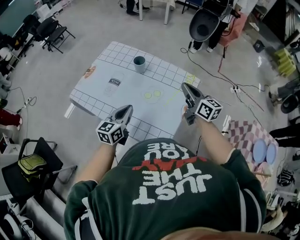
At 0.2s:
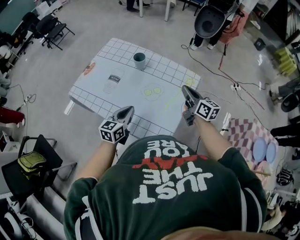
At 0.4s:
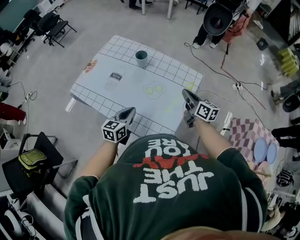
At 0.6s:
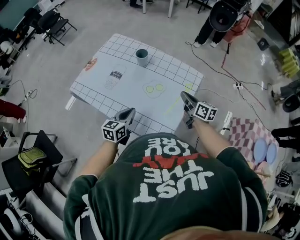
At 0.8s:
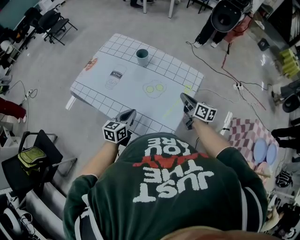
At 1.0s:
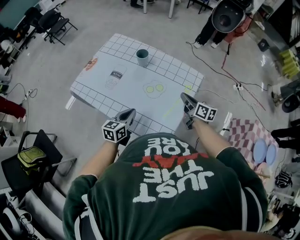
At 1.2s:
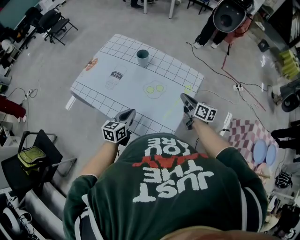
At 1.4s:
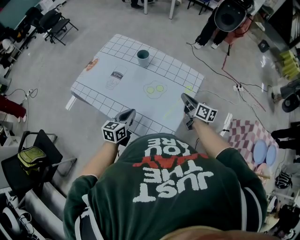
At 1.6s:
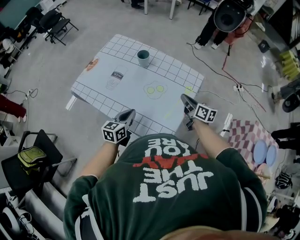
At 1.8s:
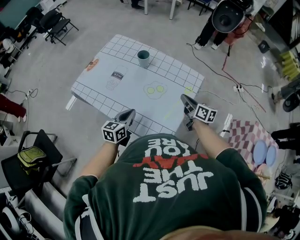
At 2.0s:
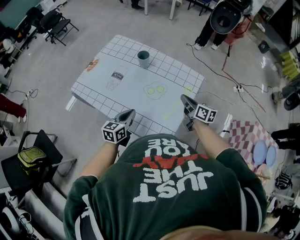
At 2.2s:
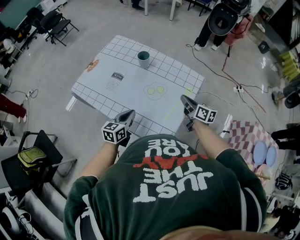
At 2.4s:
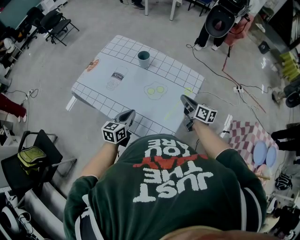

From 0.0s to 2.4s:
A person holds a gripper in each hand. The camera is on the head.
From 0.0s to 1.2s: The right gripper heads downward, covering some 15 cm, and turns by some 20 degrees. Meanwhile the left gripper heads downward, covering about 10 cm.
From 1.2s to 2.4s: The two grippers keep their place.

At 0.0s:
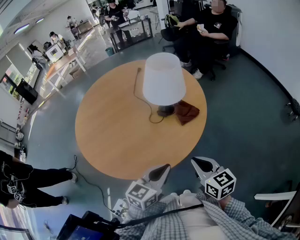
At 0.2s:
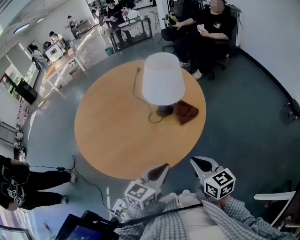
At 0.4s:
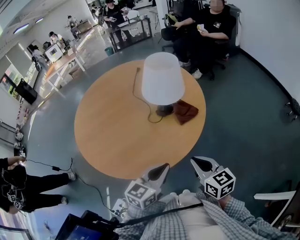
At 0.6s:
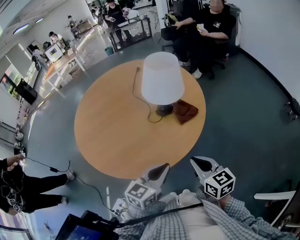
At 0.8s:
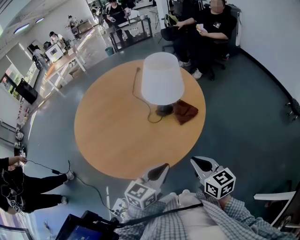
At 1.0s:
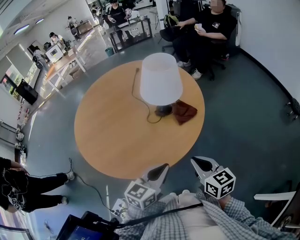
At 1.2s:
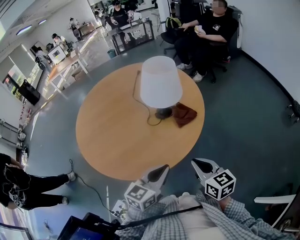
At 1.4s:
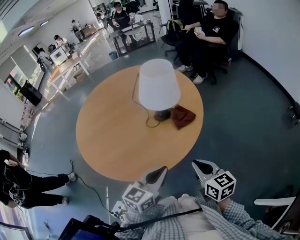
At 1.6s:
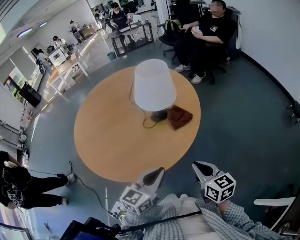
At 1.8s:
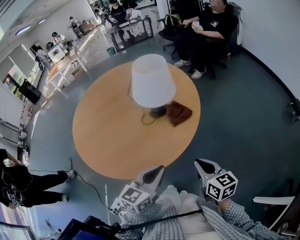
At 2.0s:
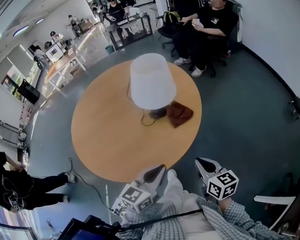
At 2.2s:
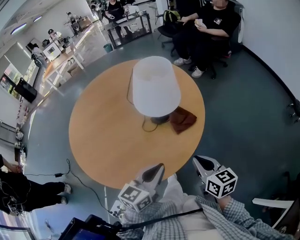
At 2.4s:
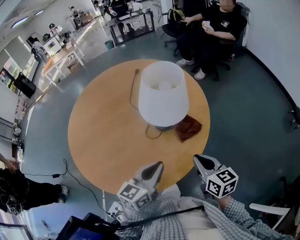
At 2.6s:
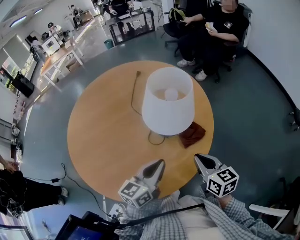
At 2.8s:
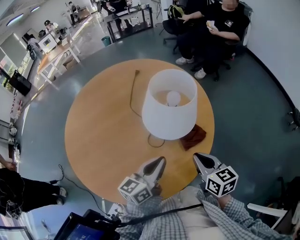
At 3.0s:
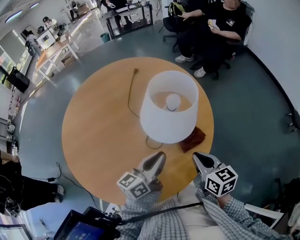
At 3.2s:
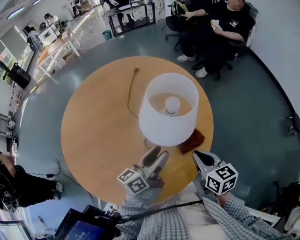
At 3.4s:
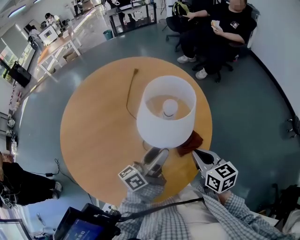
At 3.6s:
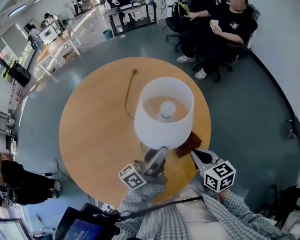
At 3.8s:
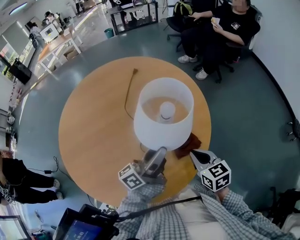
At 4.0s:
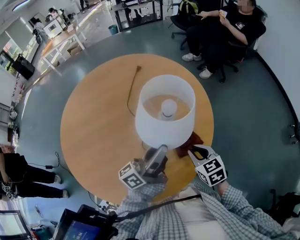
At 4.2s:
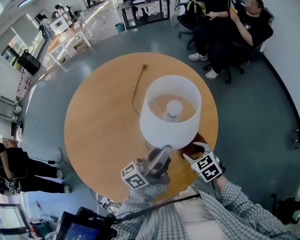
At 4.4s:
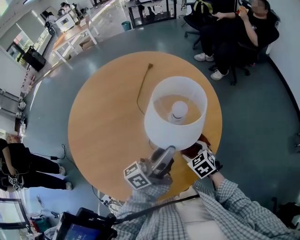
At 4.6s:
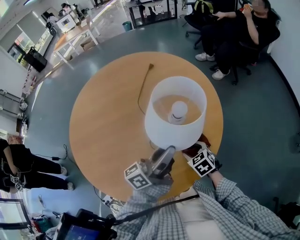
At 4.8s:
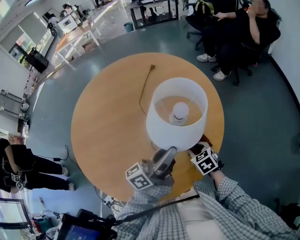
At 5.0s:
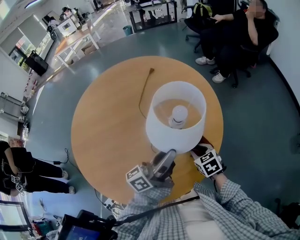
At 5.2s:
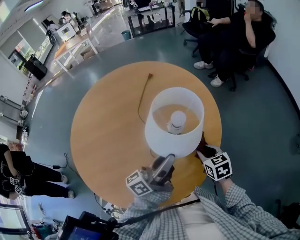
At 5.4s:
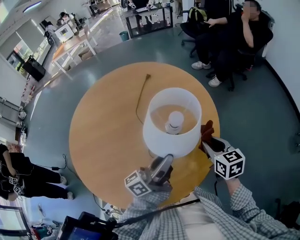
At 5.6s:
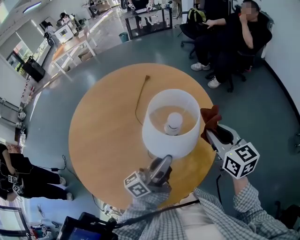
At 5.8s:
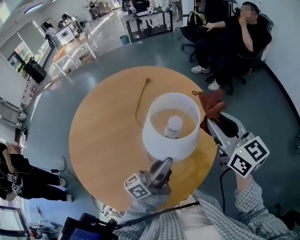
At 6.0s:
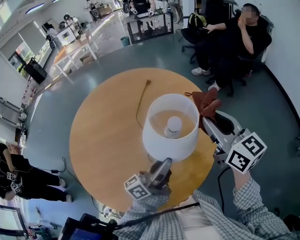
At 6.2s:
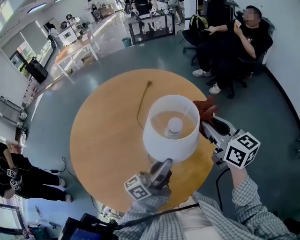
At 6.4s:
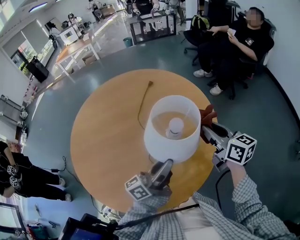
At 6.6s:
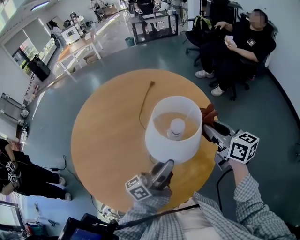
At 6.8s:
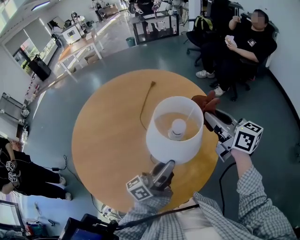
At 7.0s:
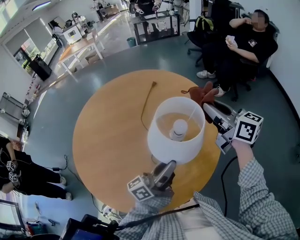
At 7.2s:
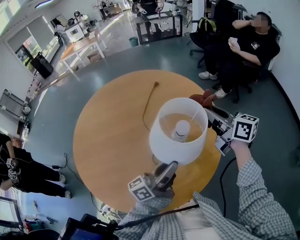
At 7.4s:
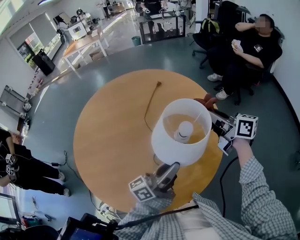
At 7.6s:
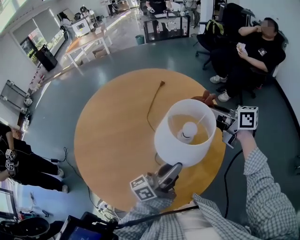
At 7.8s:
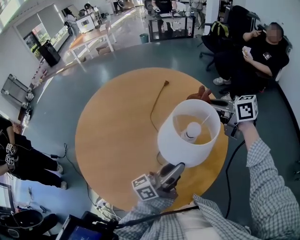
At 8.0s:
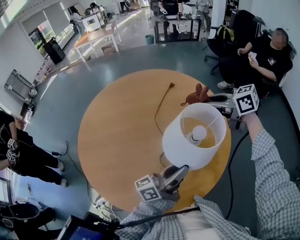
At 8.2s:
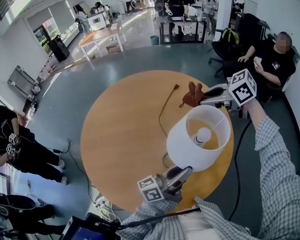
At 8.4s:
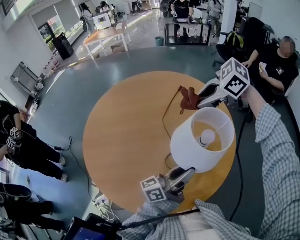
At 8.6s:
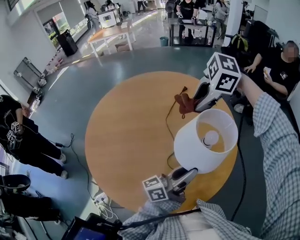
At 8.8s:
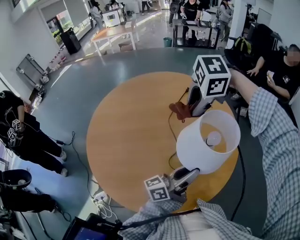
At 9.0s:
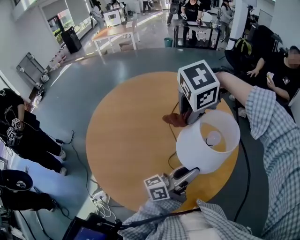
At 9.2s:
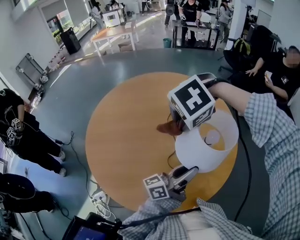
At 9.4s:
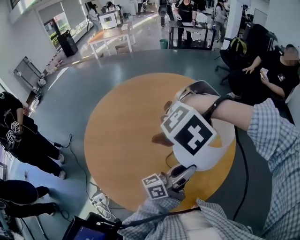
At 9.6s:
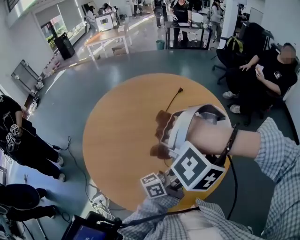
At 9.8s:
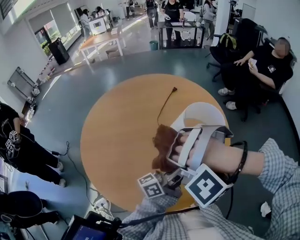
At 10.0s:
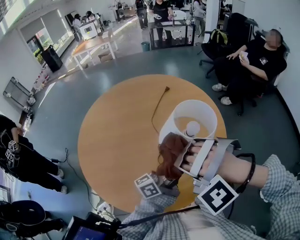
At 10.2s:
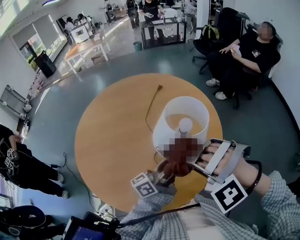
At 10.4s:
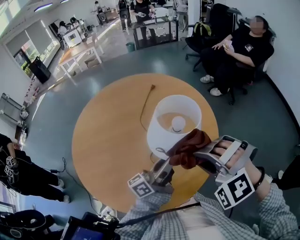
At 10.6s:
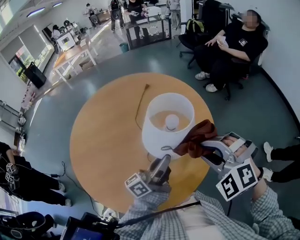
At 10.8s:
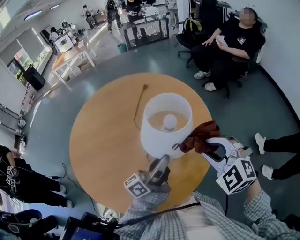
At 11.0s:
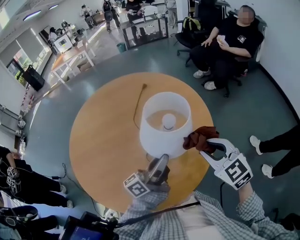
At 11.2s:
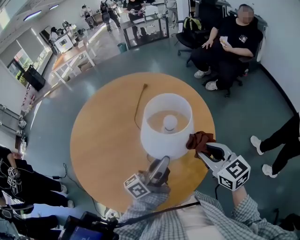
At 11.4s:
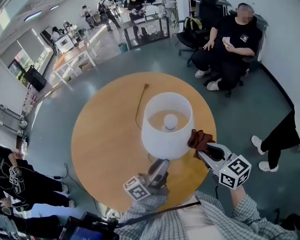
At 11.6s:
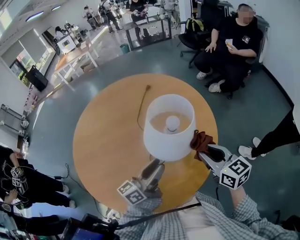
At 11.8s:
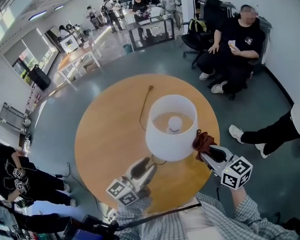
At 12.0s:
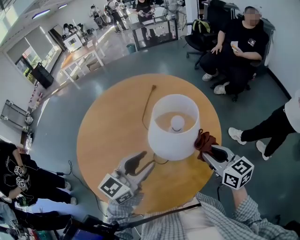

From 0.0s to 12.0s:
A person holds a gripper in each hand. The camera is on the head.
From 0.0s to 1.6s: The right gripper moves approximately 5 cm.
From 1.6s to 3.0s: Both grippers move forward, approximately 20 cm. The left gripper changes its angle by about 30 degrees.
From 3.0s to 4.4s: The right gripper shifts some 15 cm downward and forward, turns by roughly 50 degrees, and opens its fingers; the left gripper is displaced upward by roughly 5 cm, rotates approximately 30 degrees, and opens.
From 4.4s to 6.0s: The right gripper heads upward, covering approximately 30 cm, points its fingers some 50 degrees further upward, and closes its fingers.
From 6.0s to 7.6s: The right gripper is displaced forward and downward by approximately 15 cm, and swivels approximately 40 degrees.
From 7.6s to 9.0s: The right gripper ends up about 20 cm from where it was, and tips its fingers downward by about 70 degrees.
From 9.0s to 10.4s: The right gripper shifts by roughly 20 cm, and points its fingers approximately 30 degrees further upward.
From 10.4s to 12.0s: The right gripper is displaced downward and to the right by approximately 10 cm, and rolls clockwise, seen from behind, by approximately 90 degrees; the left gripper travels upward and to the left by about 5 cm, and rolls clockwise, seen from behind, by some 50 degrees.

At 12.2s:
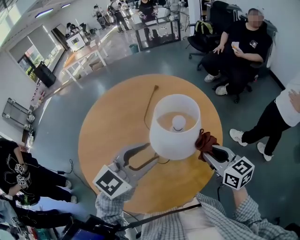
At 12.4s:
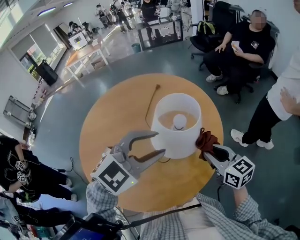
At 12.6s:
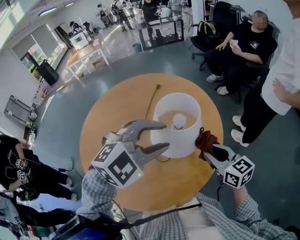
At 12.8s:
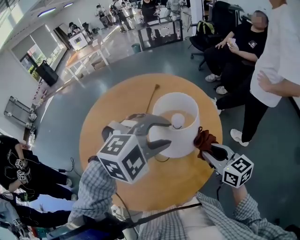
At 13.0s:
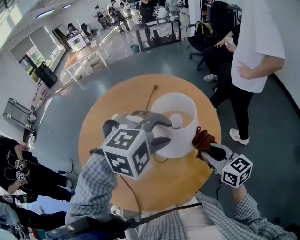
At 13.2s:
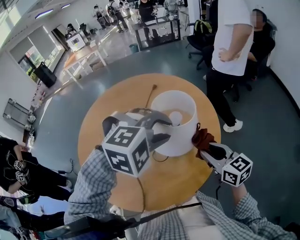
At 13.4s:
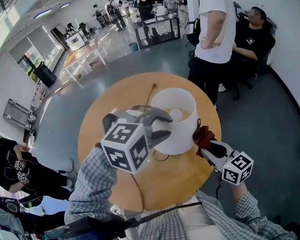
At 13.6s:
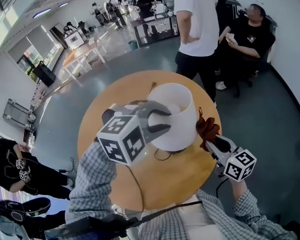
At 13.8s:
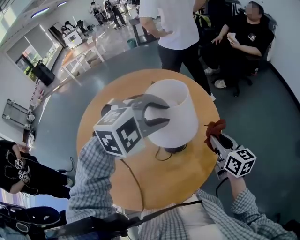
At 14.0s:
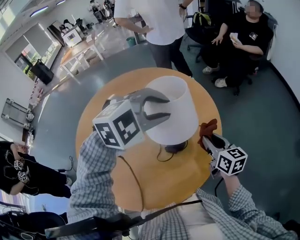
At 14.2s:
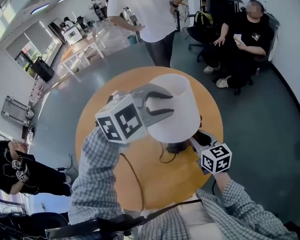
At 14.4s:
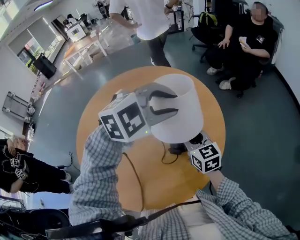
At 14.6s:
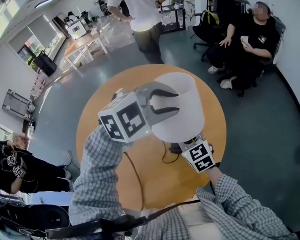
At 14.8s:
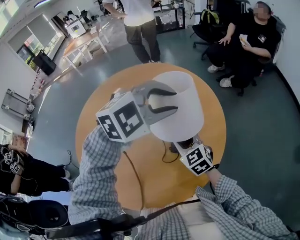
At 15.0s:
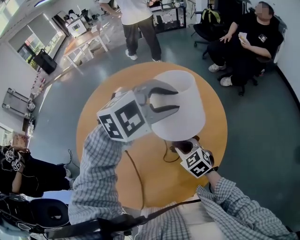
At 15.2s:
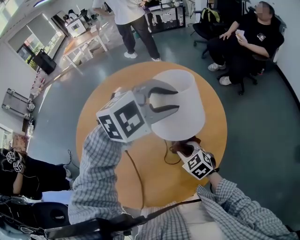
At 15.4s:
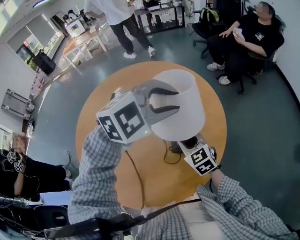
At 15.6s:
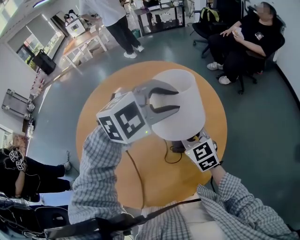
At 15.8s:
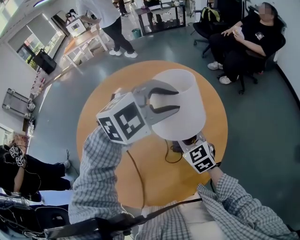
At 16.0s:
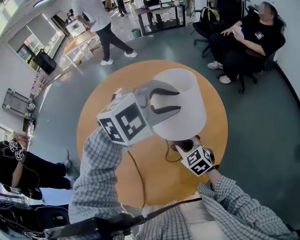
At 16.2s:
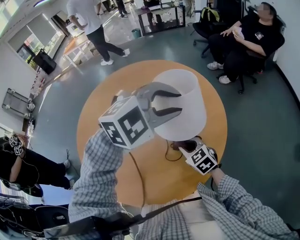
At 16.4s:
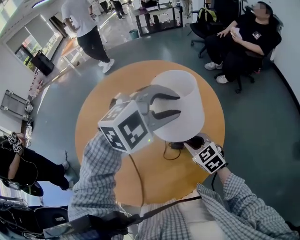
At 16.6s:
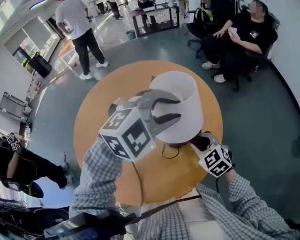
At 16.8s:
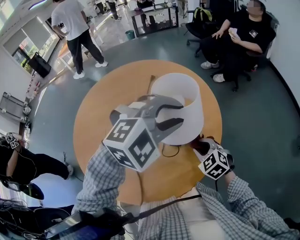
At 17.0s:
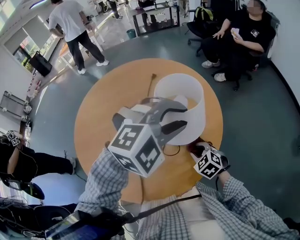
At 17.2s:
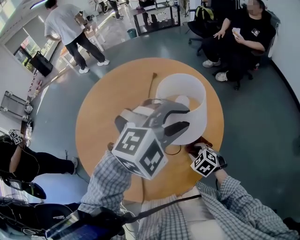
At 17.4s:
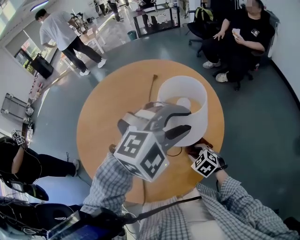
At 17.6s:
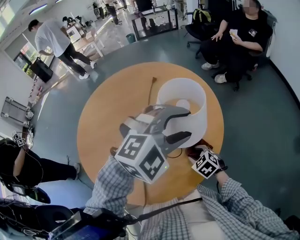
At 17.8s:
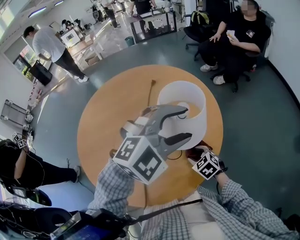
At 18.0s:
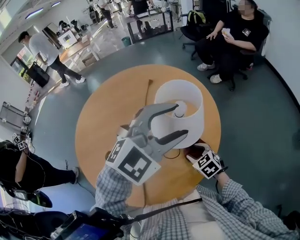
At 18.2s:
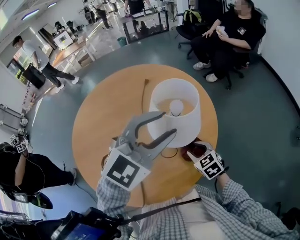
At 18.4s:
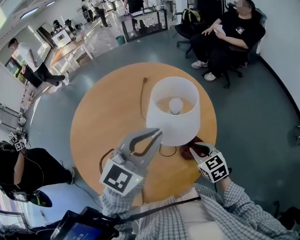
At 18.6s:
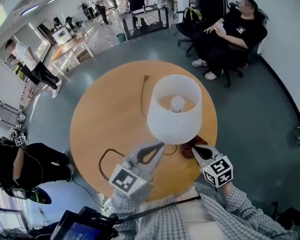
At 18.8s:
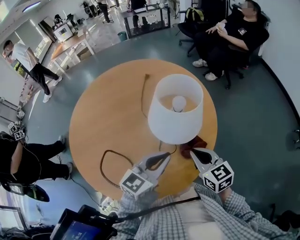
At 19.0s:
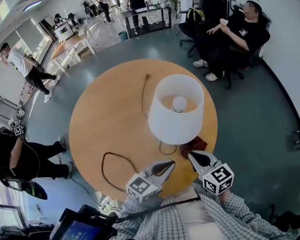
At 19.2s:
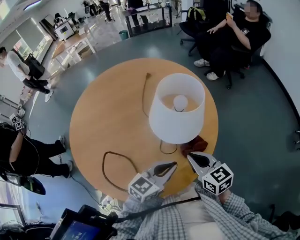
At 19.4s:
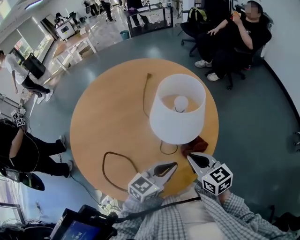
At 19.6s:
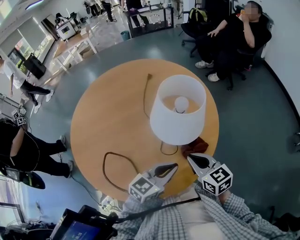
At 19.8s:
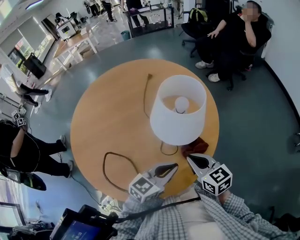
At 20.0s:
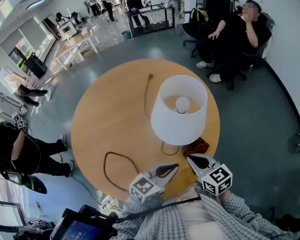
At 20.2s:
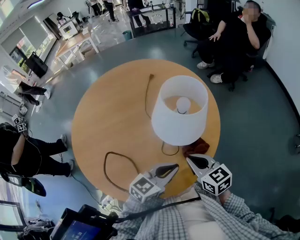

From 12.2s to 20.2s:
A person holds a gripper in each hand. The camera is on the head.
From 12.2s to 13.8s: The right gripper travels forward by about 5 cm. Meanwhile the left gripper goes approximately 10 cm forward, and angles its fingers downward, by approximately 30 degrees.
From 13.8s to 15.4s: The right gripper shifts approximately 15 cm to the left, and rotates roughly 40 degrees.
From 15.4s to 17.0s: The right gripper swings up and down, some 15 cm each way, with 3 reversals, and swivels approximately 30 degrees. The left gripper goes approximately 5 cm backward.
From 17.0s to 18.6s: The left gripper travels downward, backward and to the left by roughly 10 cm, rotates around the line of its fingers by approximately 50 degrees, counterclockwise from behind, and closes, while the right gripper heads upward, covering some 10 cm, swivels roughly 40 degrees, and closes its fingers.
From 18.6s to 20.2s: The left gripper goes roughly 15 cm downward and backward, and swivels roughly 20 degrees.

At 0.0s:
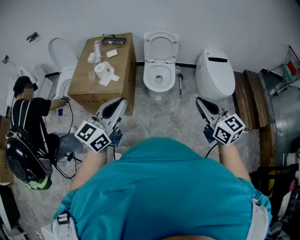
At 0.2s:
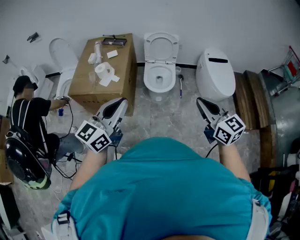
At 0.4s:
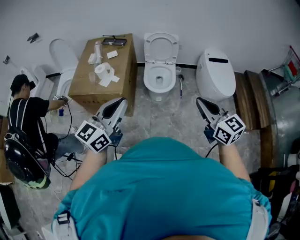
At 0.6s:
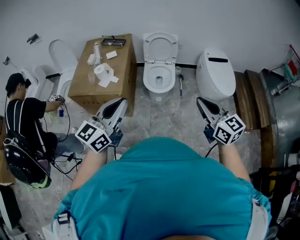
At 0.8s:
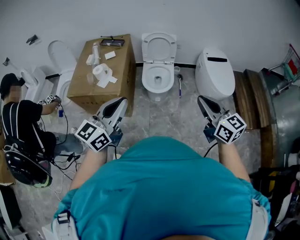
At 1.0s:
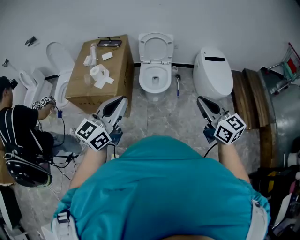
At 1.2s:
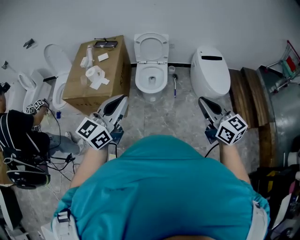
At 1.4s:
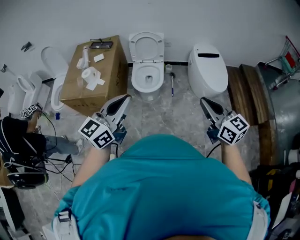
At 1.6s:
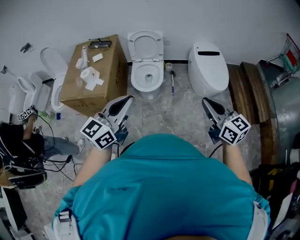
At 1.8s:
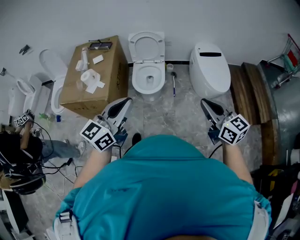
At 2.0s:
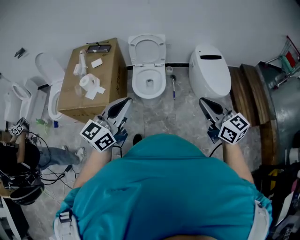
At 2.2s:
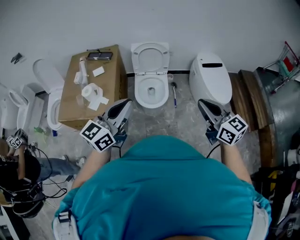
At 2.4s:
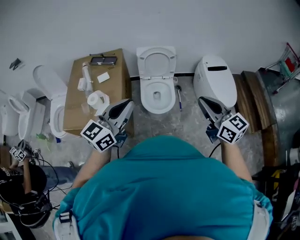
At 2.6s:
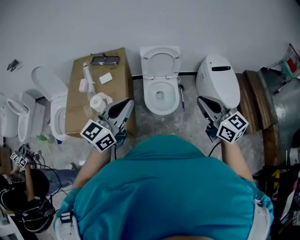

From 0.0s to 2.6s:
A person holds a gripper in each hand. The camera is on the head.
From 0.0s to 1.2s: The grippers both shift to the right by some 10 cm.
From 1.2s to 2.6s: The grippers both shift forward and to the left by approximately 35 cm.
